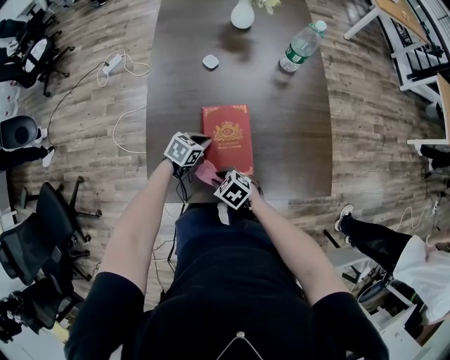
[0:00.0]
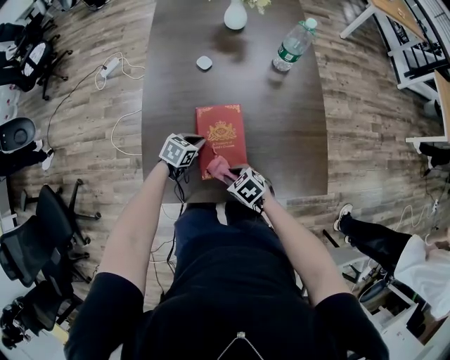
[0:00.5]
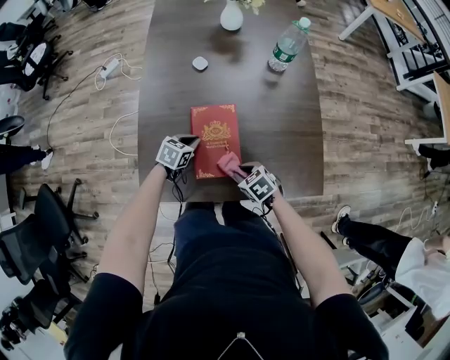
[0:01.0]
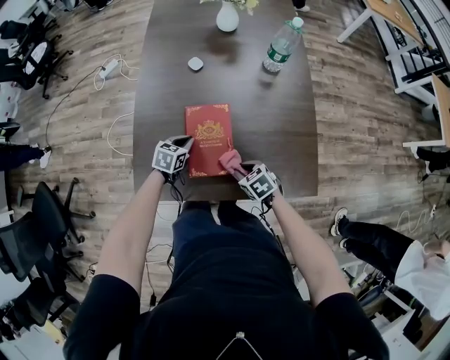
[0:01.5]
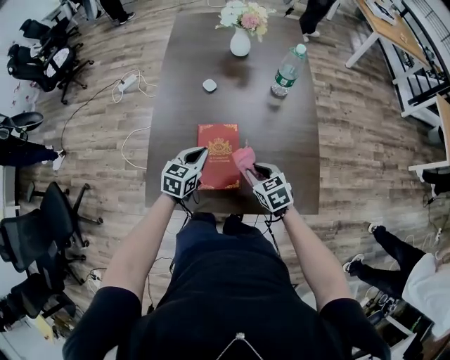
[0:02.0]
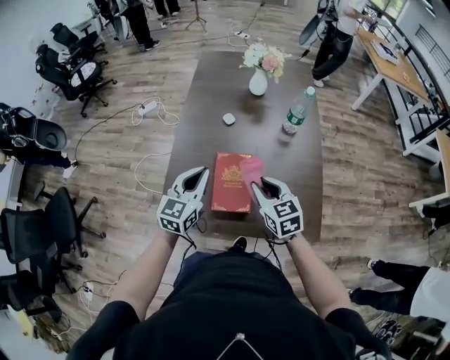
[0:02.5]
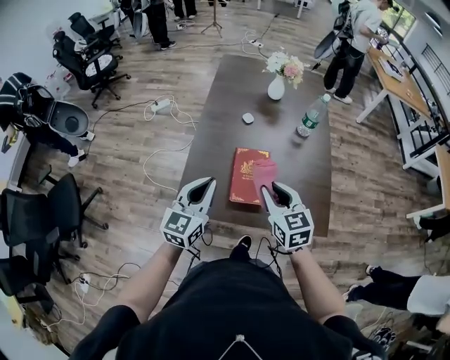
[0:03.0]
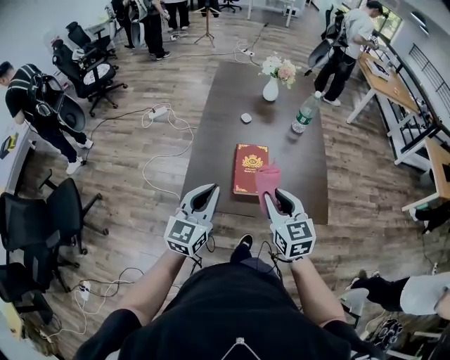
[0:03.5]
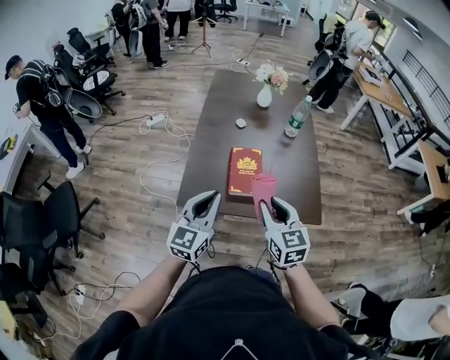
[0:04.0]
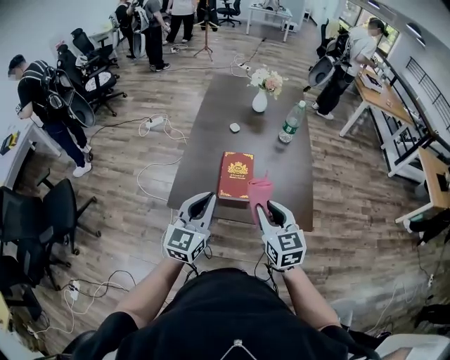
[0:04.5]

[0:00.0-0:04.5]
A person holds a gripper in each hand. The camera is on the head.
0:00.0 to 0:02.0: The left gripper heads upward, covering roughly 15 cm, and rotates about 30 degrees. The right gripper shifts by roughly 20 cm, and rotates approximately 30 degrees.
0:02.0 to 0:04.5: The left gripper travels backward and upward by some 35 cm, and points its fingers about 30 degrees further upward, while the right gripper goes approximately 35 cm upward and backward, and changes its angle by approximately 30 degrees.

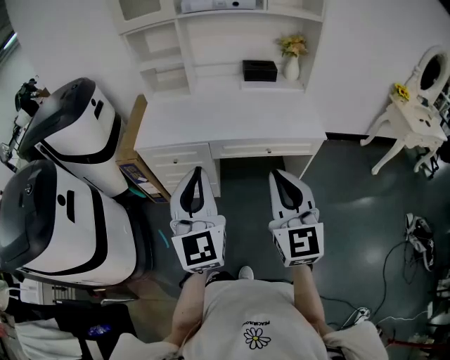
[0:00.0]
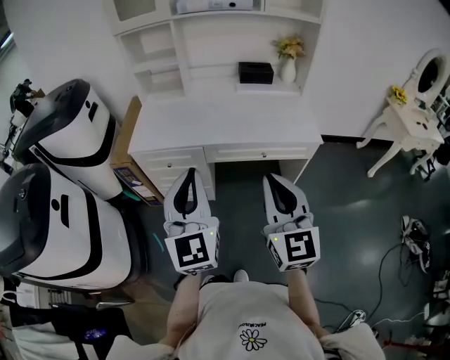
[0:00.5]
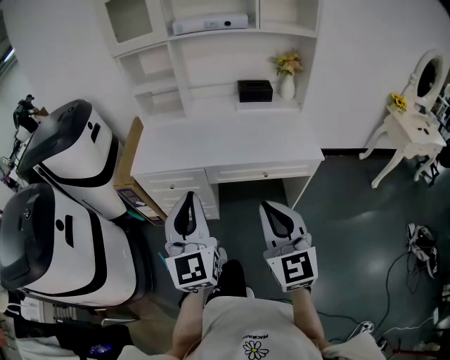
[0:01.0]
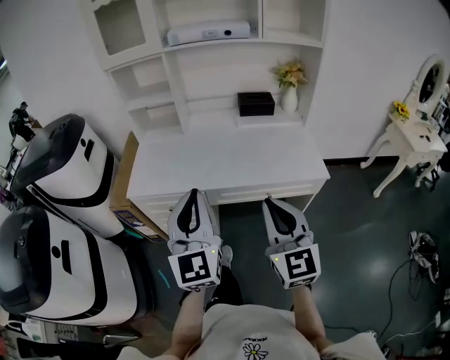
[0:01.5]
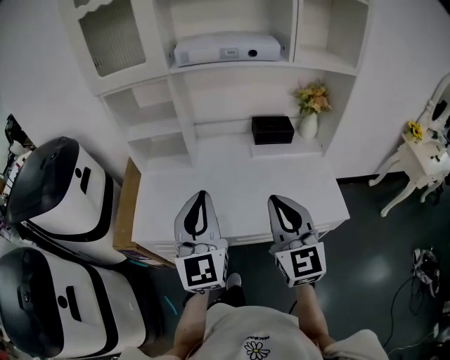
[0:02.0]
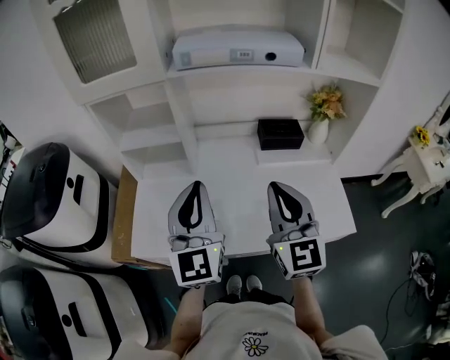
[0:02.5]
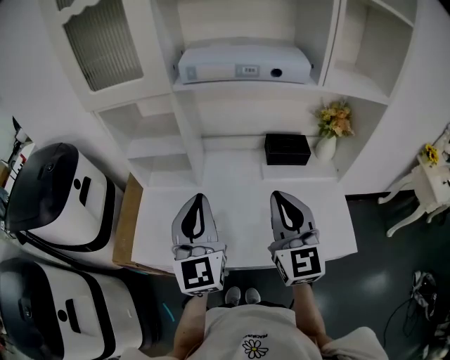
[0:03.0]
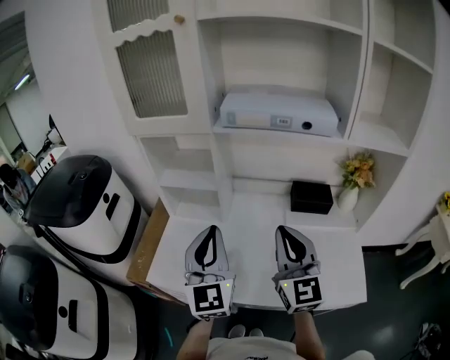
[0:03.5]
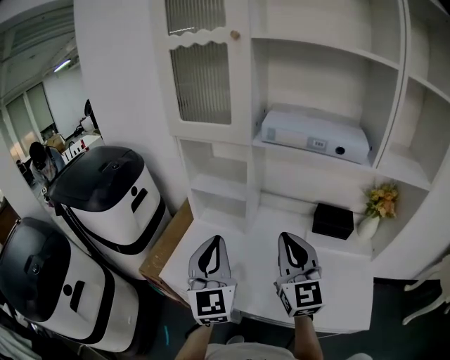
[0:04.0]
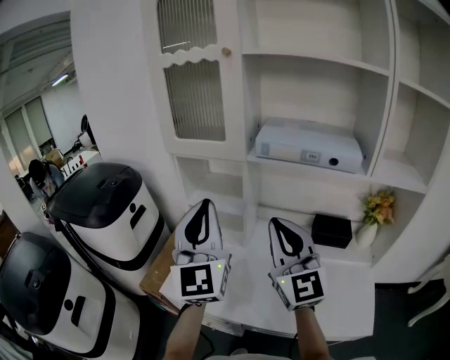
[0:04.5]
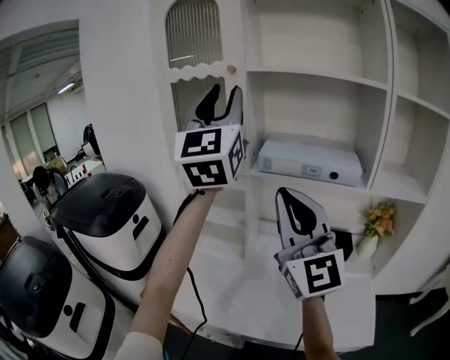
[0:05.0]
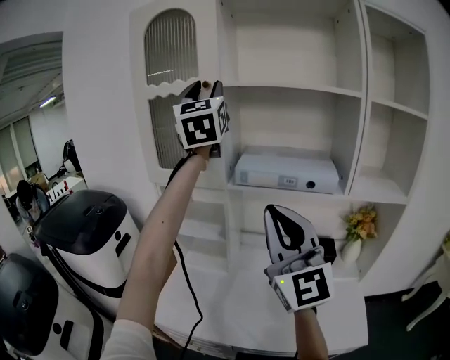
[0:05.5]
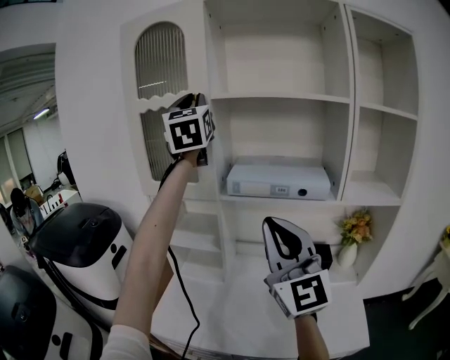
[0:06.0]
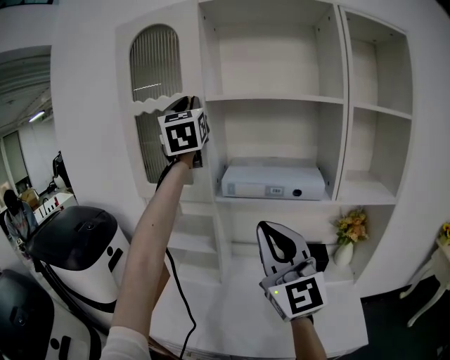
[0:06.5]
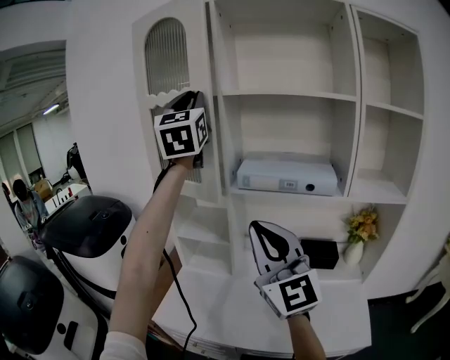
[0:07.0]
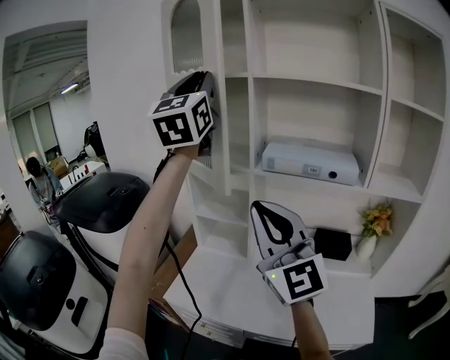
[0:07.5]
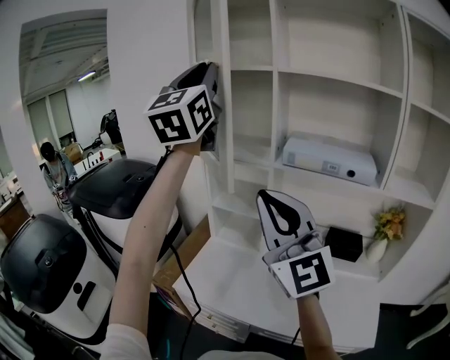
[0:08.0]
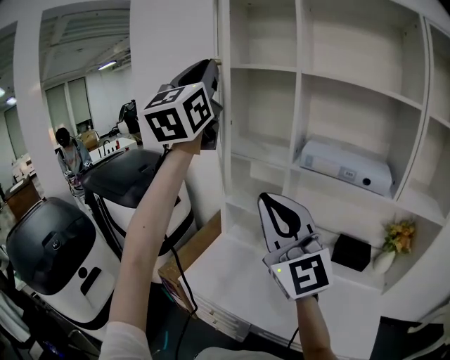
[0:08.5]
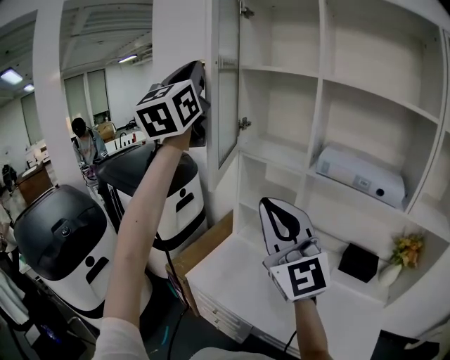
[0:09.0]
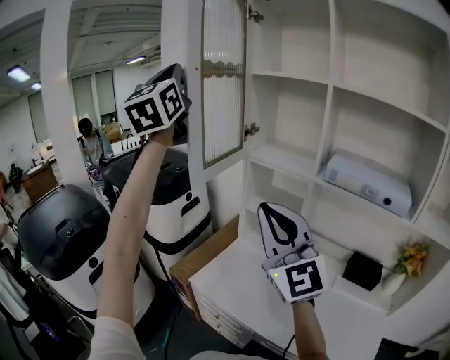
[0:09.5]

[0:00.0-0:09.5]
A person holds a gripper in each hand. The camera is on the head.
0:00.0 to 0:02.0: The two grippers go approximately 35 cm forward.
0:02.0 to 0:04.0: The right gripper moves forward, roughly 20 cm. Meanwhile the left gripper heads forward and to the left, covering roughly 15 cm, and changes its angle by about 20 degrees.
0:04.0 to 0:05.5: The left gripper goes about 50 cm upward and forward, turns by roughly 20 degrees, and opens. The right gripper moves upward, roughly 20 cm, and changes its angle by some 20 degrees.
0:05.5 to 0:07.5: The left gripper is displaced to the left and backward by about 10 cm; the right gripper travels to the left by about 10 cm.
0:07.5 to 0:09.5: The left gripper shifts roughly 25 cm to the left, and turns by some 20 degrees; the right gripper goes approximately 10 cm to the left.

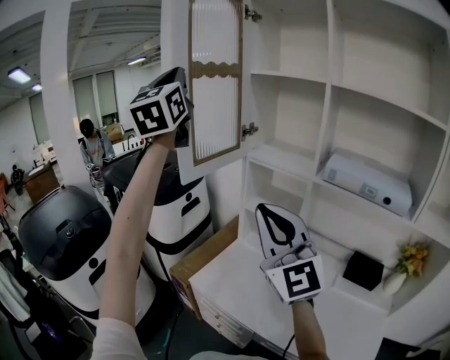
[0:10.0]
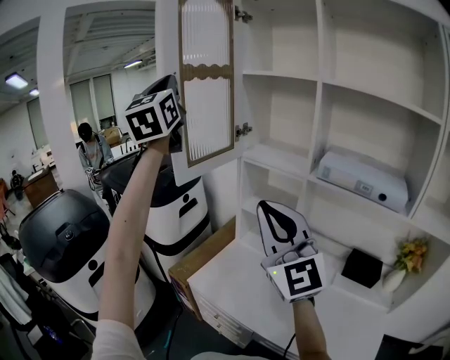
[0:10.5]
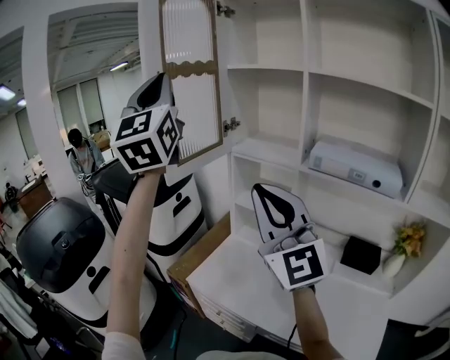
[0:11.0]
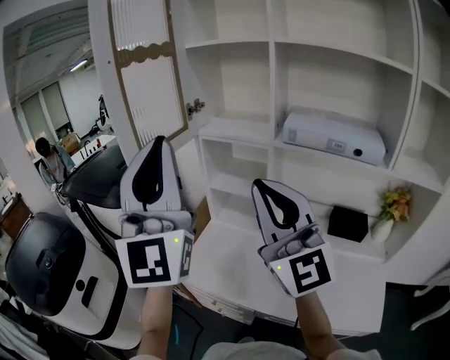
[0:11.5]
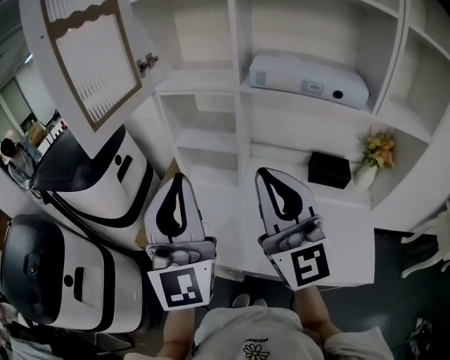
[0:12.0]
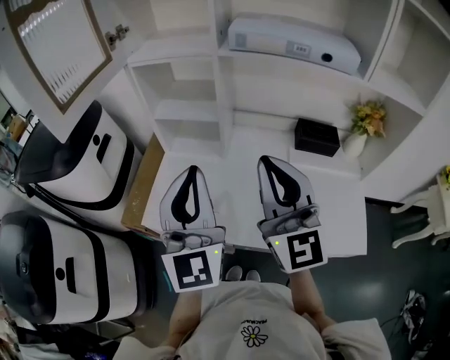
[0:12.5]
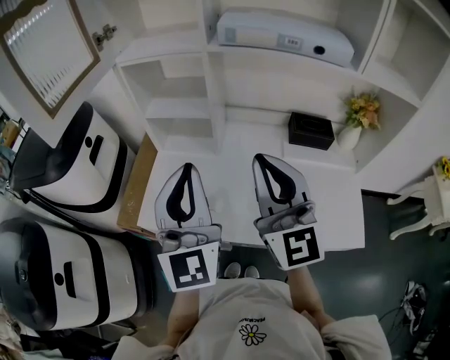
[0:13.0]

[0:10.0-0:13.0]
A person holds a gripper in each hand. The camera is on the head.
0:10.0 to 0:11.5: The left gripper goes roughly 25 cm backward, downward and to the right; the right gripper heads to the right, covering roughly 5 cm.
0:11.5 to 0:13.0: The grippers both shift downward and to the right by about 20 cm. The left gripper changes its angle by roughly 30 degrees. Meanwhile the right gripper rotates some 30 degrees.

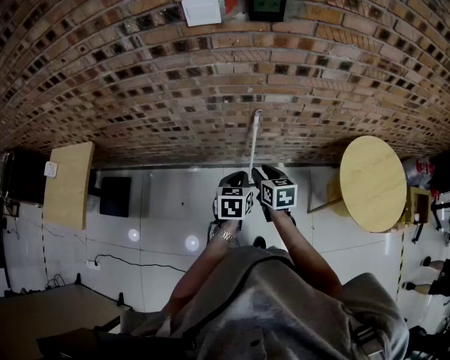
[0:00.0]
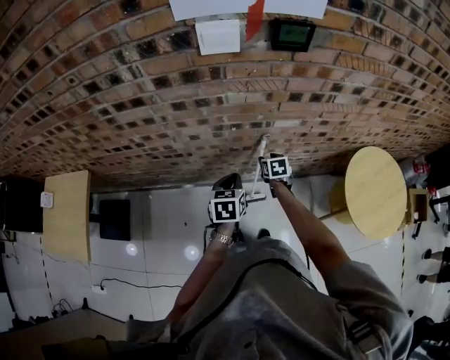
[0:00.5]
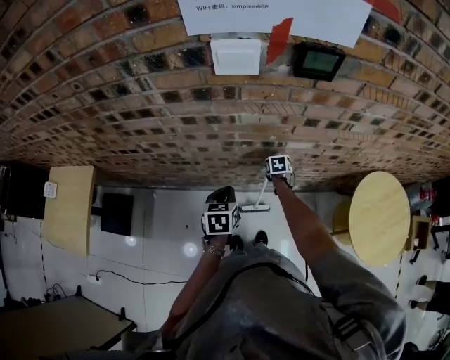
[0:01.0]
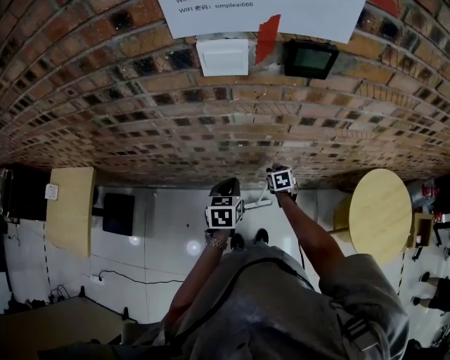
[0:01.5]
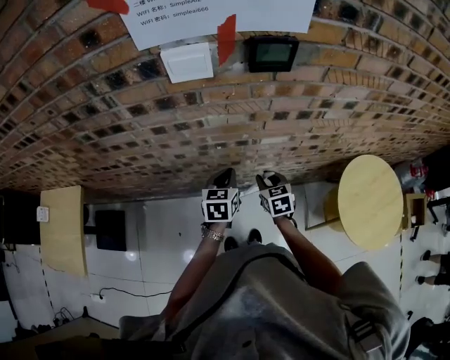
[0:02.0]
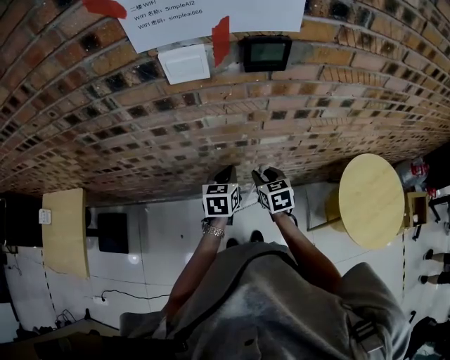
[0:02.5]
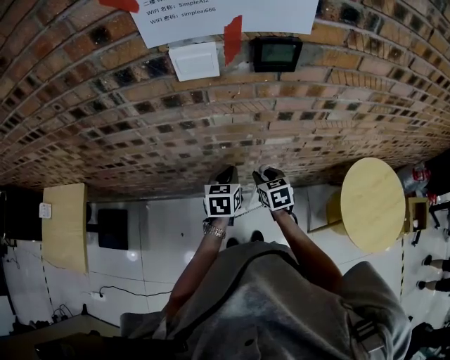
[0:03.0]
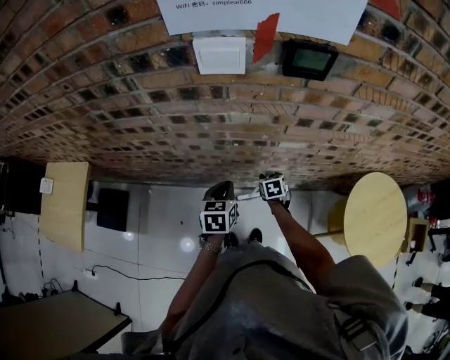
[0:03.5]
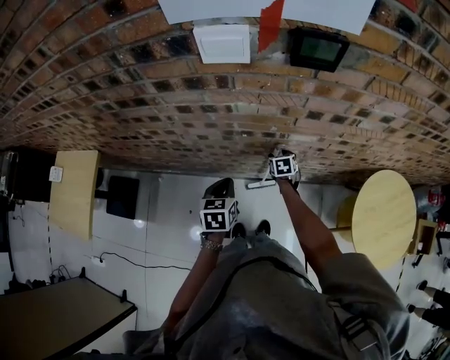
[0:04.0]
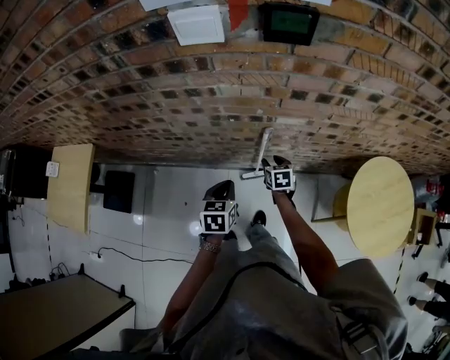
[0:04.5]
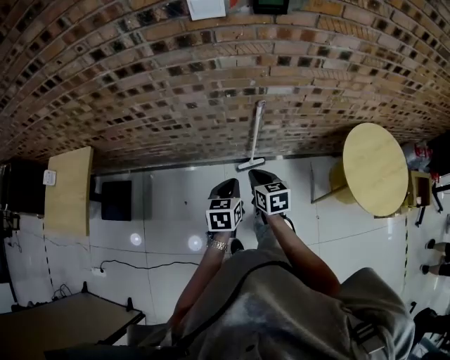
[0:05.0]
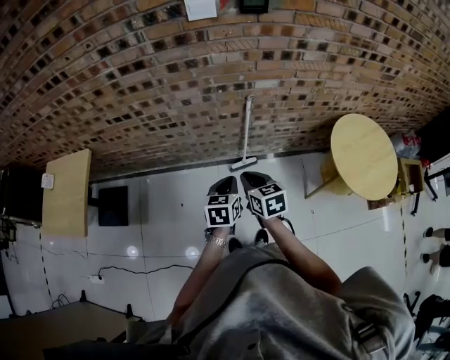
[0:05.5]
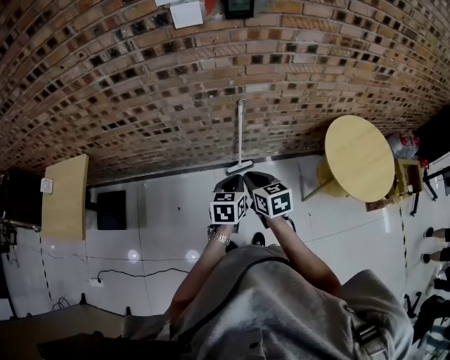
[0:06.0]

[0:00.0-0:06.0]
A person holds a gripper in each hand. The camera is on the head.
0:00.0 to 0:02.0: Both grippers travel together forward, about 20 cm.
0:02.0 to 0:04.0: The right gripper heads downward and forward, covering approximately 20 cm, and opens its fingers. Meanwhile the left gripper is displaced to the left and backward by about 10 cm.
0:04.0 to 0:06.0: The left gripper shifts roughly 25 cm backward; the right gripper moves backward and upward, roughly 50 cm, swivels approximately 20 degrees, and closes.

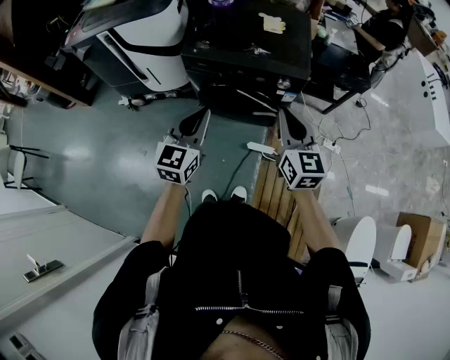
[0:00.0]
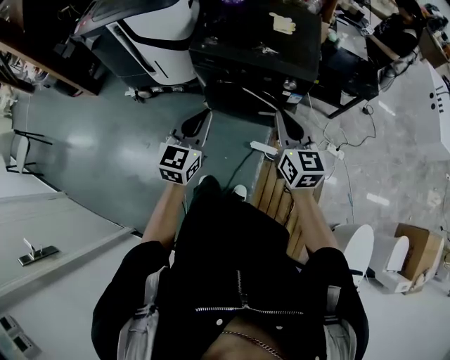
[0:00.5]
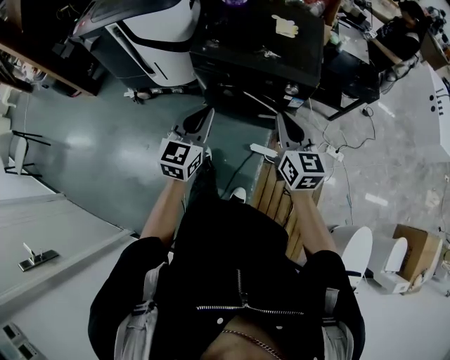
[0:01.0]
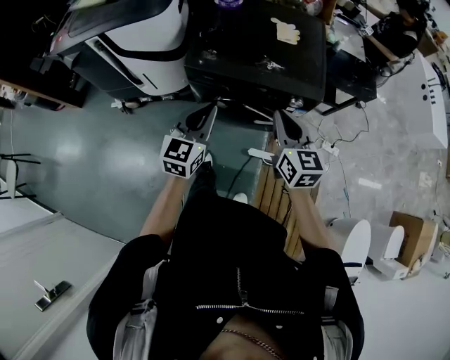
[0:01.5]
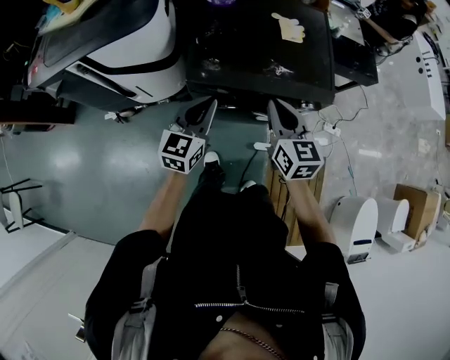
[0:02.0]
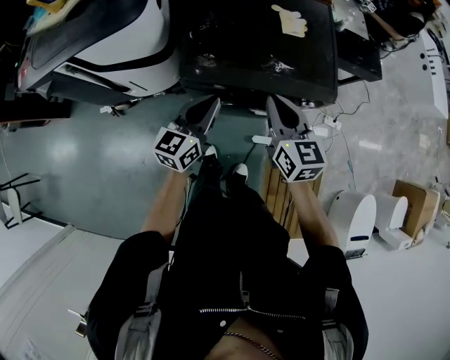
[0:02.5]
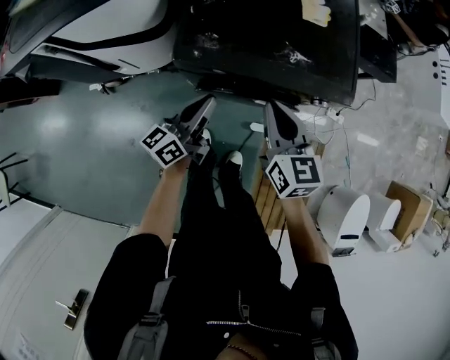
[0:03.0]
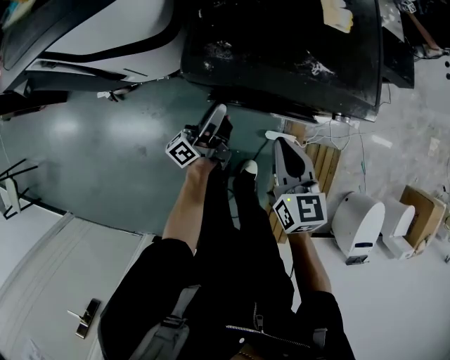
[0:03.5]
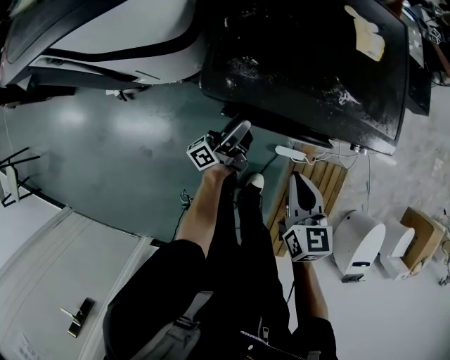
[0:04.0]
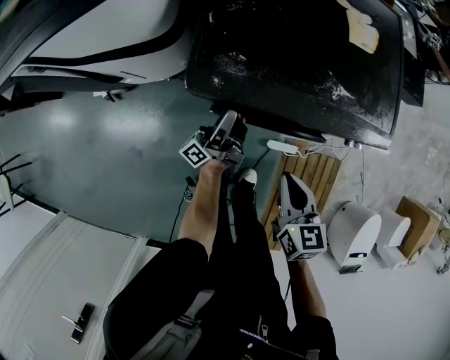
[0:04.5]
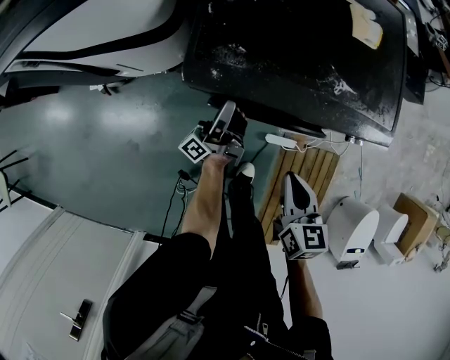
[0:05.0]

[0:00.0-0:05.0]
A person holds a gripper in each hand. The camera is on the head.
0:00.0 to 0:02.5: The right gripper shifts roughly 25 cm forward and to the left; the left gripper shifts about 25 cm forward, and turns by approximately 30 degrees.
0:02.5 to 0:05.0: The two grippers go some 20 cm downward. The left gripper twists some 60 degrees counterclockwise, seen from behind, and opens its fingers. Meanwhile the right gripper turns by about 20 degrees.
